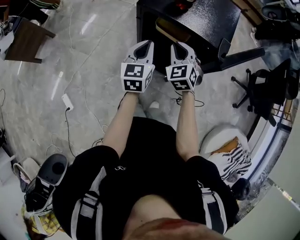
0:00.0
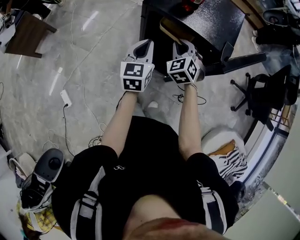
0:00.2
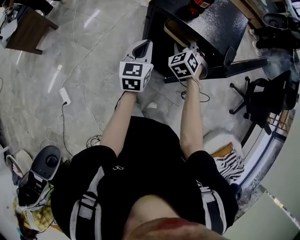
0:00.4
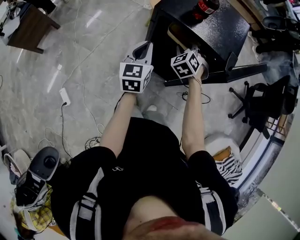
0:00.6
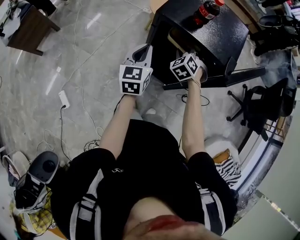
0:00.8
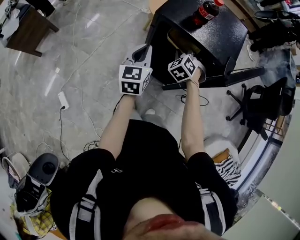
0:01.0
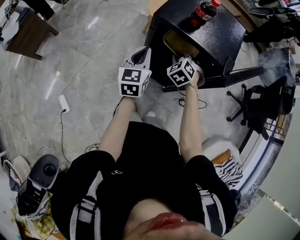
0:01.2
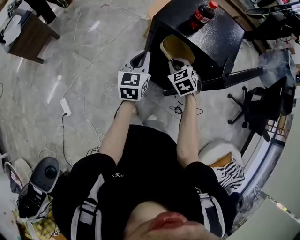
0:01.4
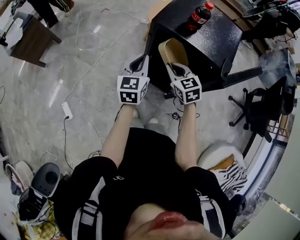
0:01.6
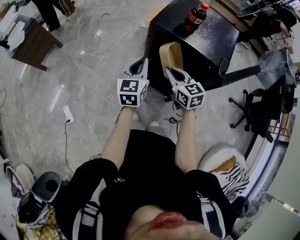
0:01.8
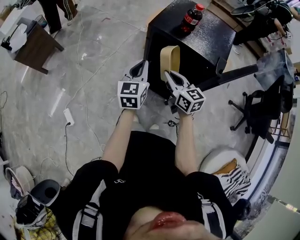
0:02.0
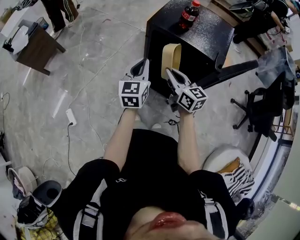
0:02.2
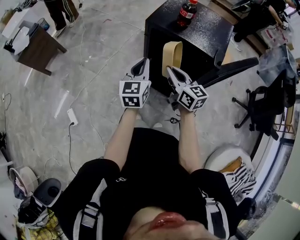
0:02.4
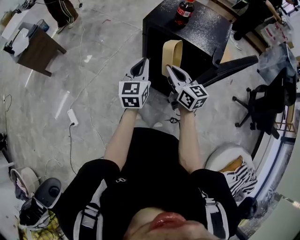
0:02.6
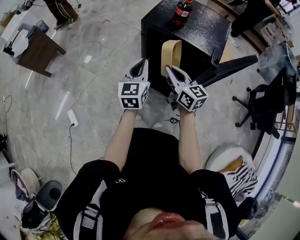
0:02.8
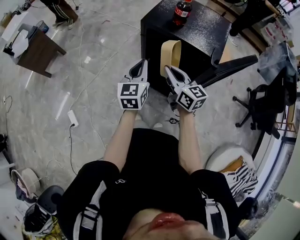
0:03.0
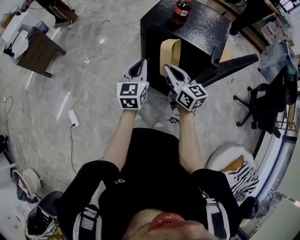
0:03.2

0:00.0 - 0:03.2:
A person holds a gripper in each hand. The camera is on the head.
0:00.0 - 0:01.6: The two grippers go approximately 5 cm to the left. The right gripper turns by roughly 30 degrees, and opens, then closes once more.
0:01.6 - 0:03.2: The left gripper is displaced backward by some 5 cm; the right gripper shifts approximately 10 cm upward and backward, and swivels about 40 degrees.

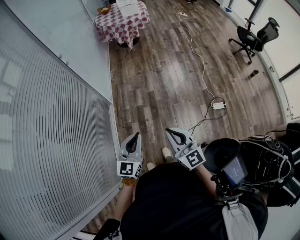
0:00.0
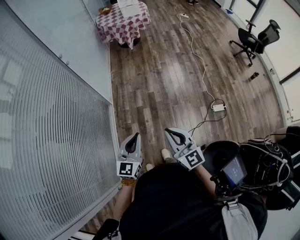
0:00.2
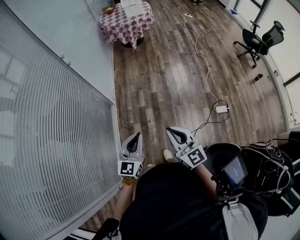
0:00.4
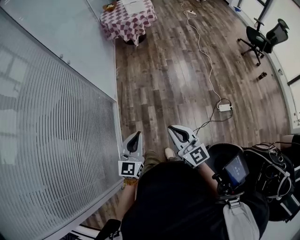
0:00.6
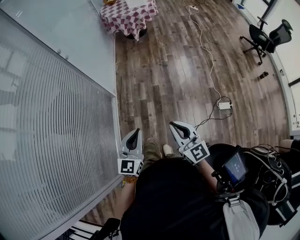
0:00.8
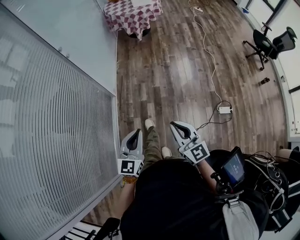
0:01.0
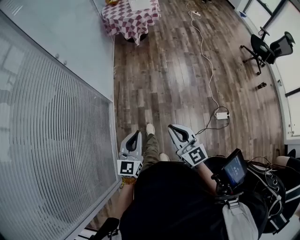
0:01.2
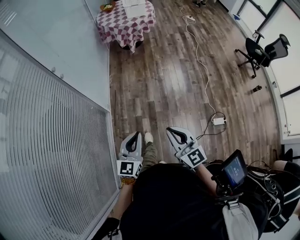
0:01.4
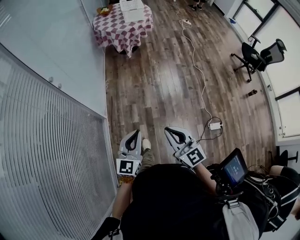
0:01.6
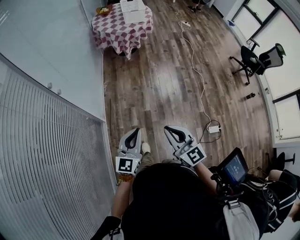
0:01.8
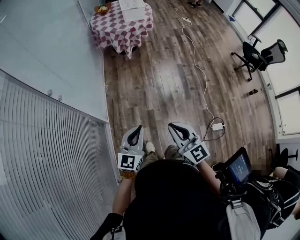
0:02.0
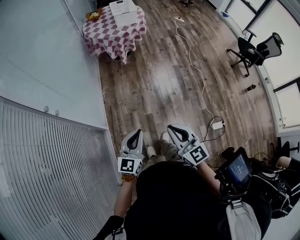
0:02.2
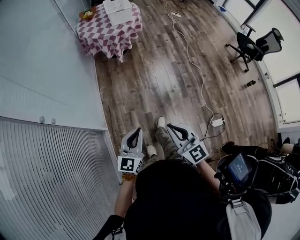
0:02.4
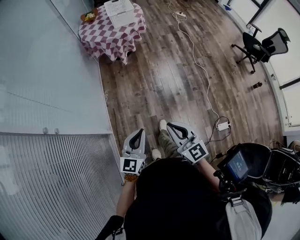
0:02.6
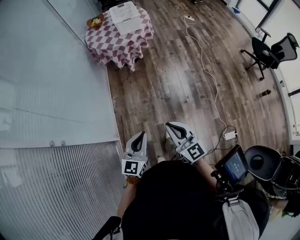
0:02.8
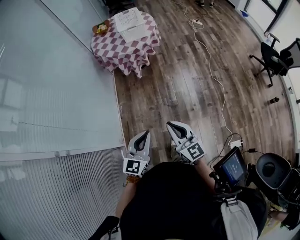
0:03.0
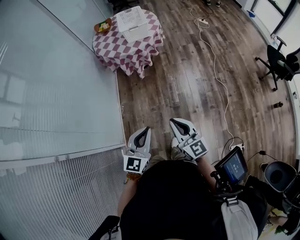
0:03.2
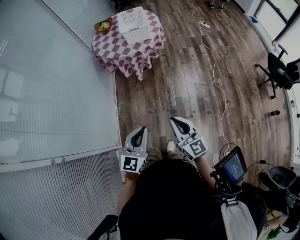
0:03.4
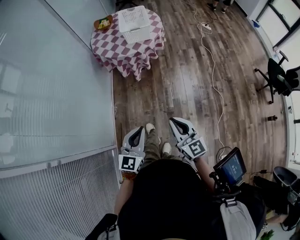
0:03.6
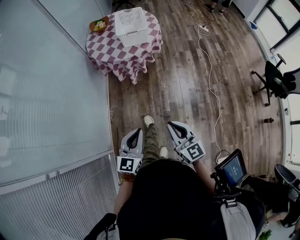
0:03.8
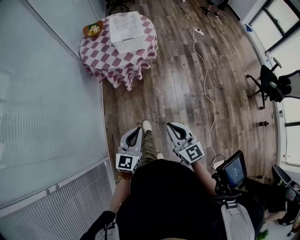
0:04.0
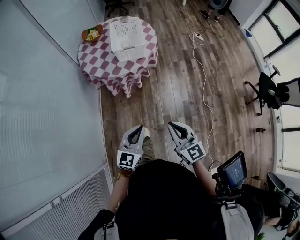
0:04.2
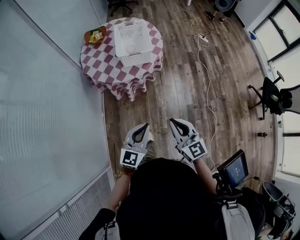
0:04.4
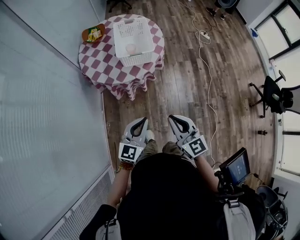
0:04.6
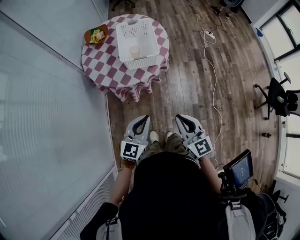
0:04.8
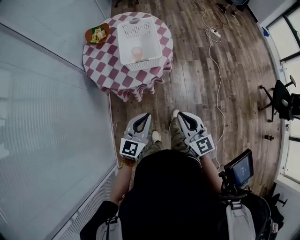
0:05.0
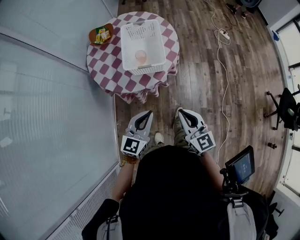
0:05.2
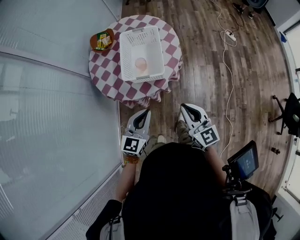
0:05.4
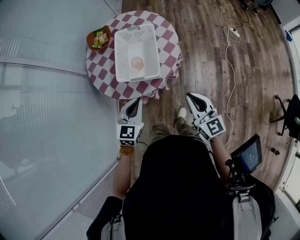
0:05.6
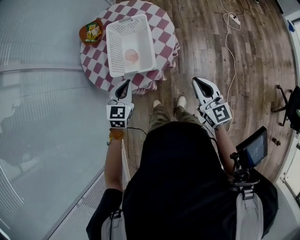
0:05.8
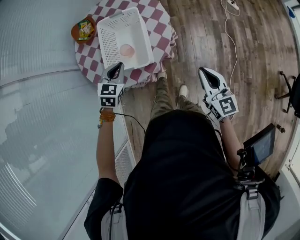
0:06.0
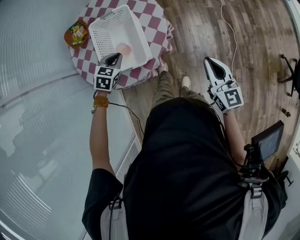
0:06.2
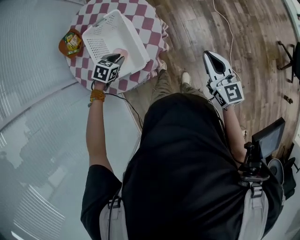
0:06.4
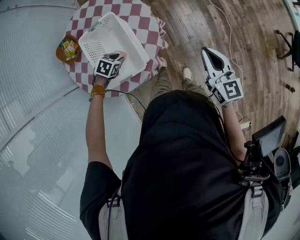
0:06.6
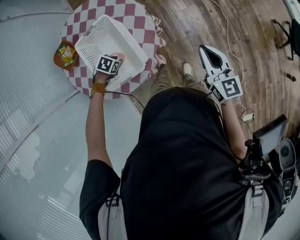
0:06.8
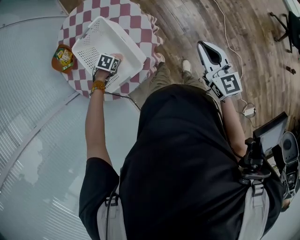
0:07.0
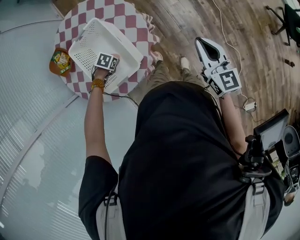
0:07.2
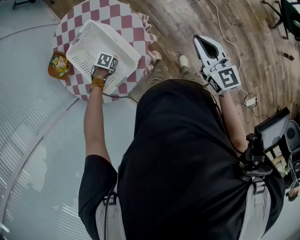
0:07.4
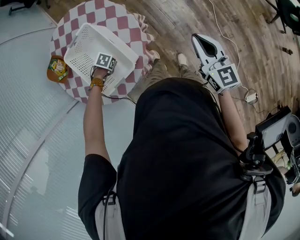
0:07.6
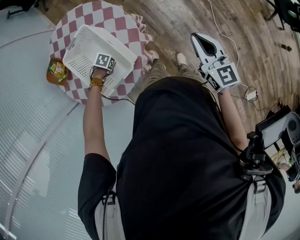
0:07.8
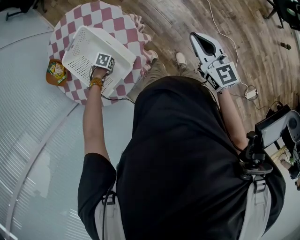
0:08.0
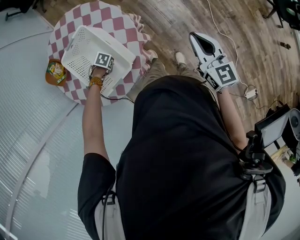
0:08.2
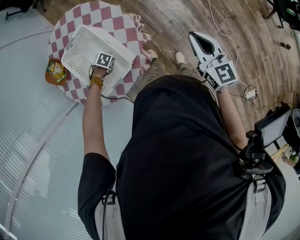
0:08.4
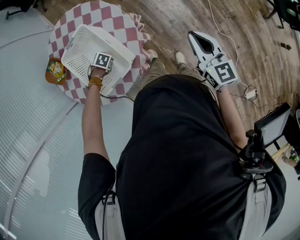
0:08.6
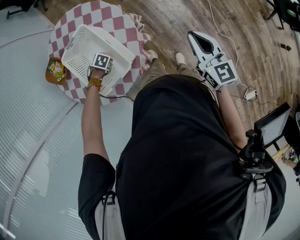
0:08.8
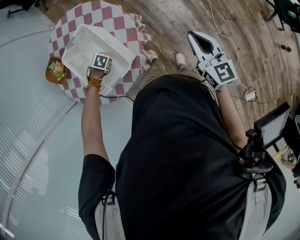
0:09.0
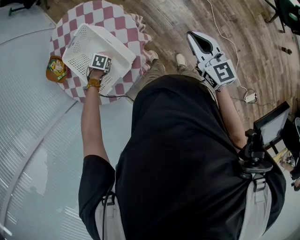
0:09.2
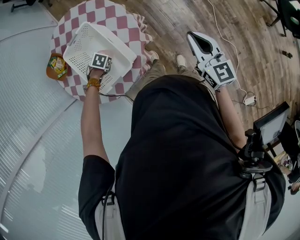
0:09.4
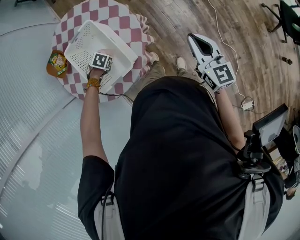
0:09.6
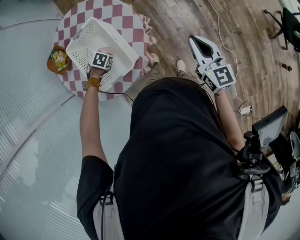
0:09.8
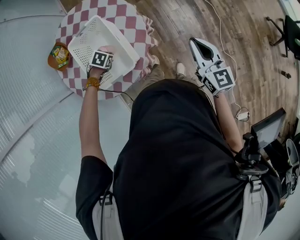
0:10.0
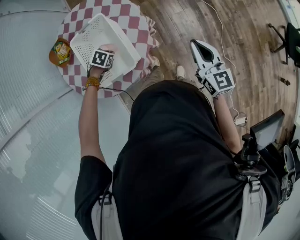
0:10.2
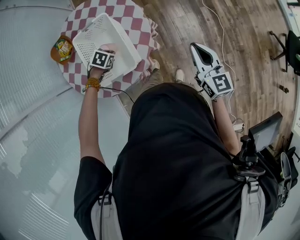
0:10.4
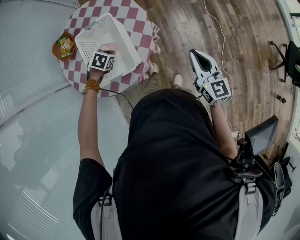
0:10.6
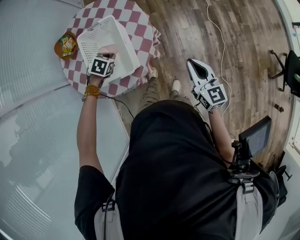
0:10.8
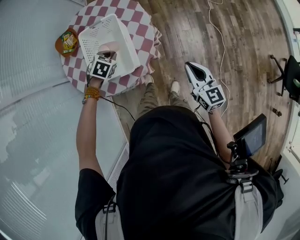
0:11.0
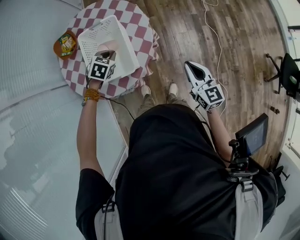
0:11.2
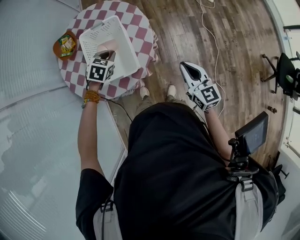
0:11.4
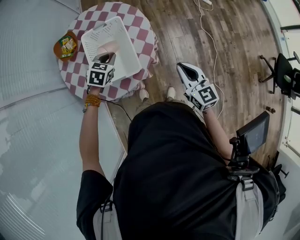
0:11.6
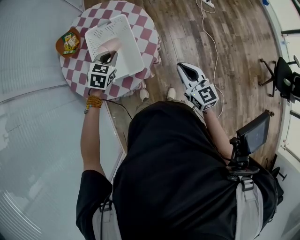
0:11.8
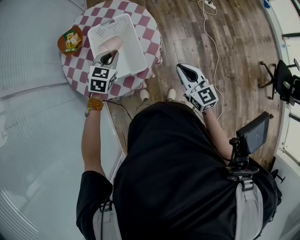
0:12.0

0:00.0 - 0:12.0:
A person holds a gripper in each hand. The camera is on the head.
0:00.0 - 0:01.6: The grippers both shift forward by approximately 30 cm.
0:01.6 - 0:03.0: The two grippers go roughly 35 cm forward.
0:03.0 - 0:04.4: The two grippers travel together, forward, roughly 40 cm.
0:04.4 - 0:06.0: The pair of grippers is taken forward, some 50 cm. The left gripper tips its fingers downward by roughly 40 degrees.
0:06.0 - 0:07.6: The left gripper shifts about 25 cm downward, angles its fingers downward, by about 40 degrees, and opens its fingers. The right gripper moves roughly 5 cm, and swivels roughly 30 degrees.
0:07.6 - 0:09.0: The left gripper closes.
0:09.0 - 0:10.4: The left gripper heads upward, covering about 10 cm.
0:10.4 - 0:12.0: The left gripper goes roughly 15 cm upward, and points its fingers roughly 40 degrees further upward, while the right gripper changes place by about 15 cm.

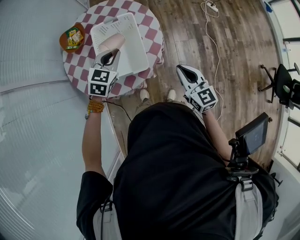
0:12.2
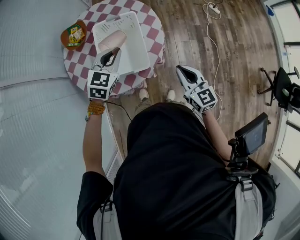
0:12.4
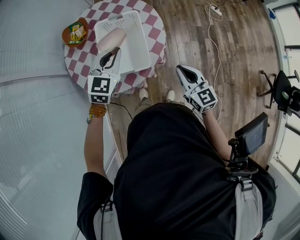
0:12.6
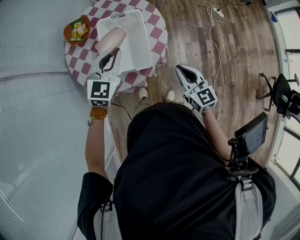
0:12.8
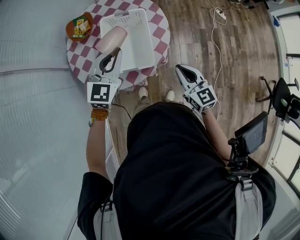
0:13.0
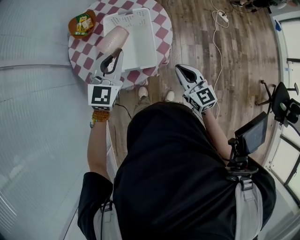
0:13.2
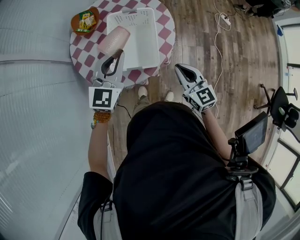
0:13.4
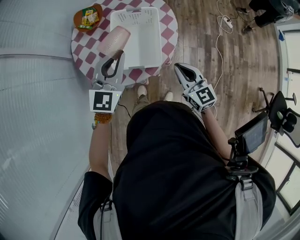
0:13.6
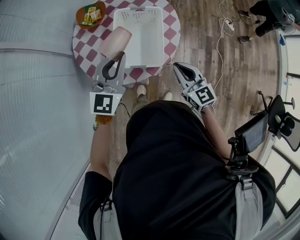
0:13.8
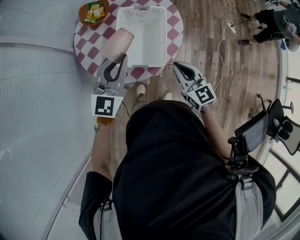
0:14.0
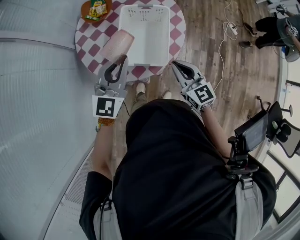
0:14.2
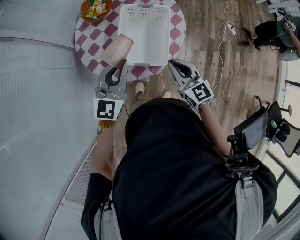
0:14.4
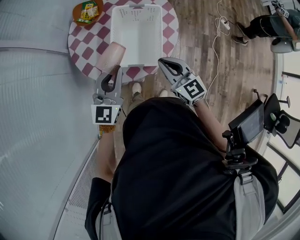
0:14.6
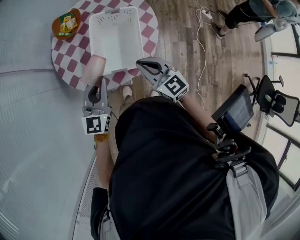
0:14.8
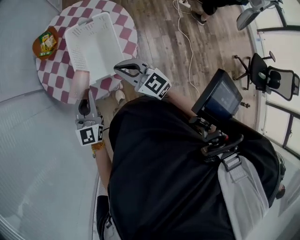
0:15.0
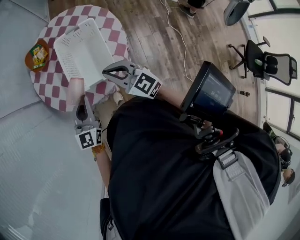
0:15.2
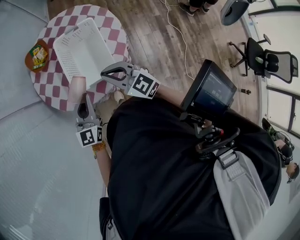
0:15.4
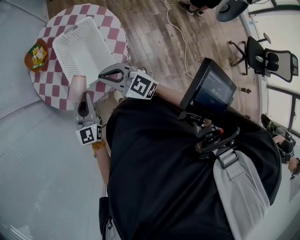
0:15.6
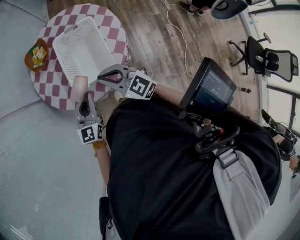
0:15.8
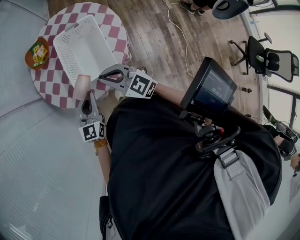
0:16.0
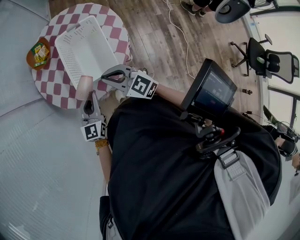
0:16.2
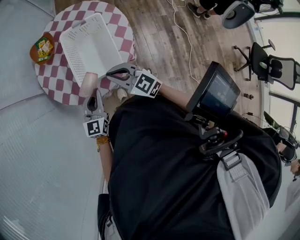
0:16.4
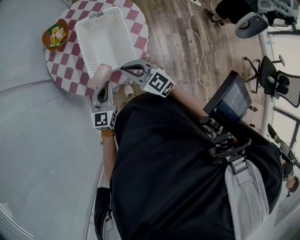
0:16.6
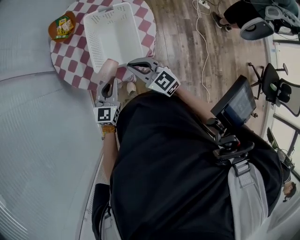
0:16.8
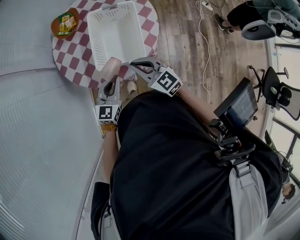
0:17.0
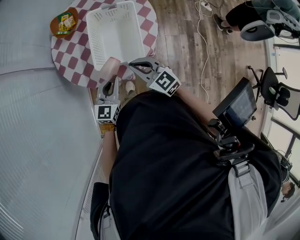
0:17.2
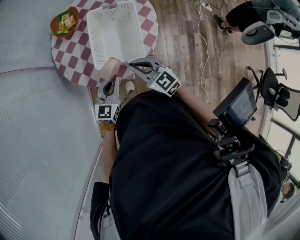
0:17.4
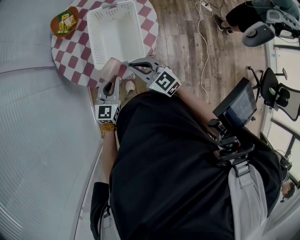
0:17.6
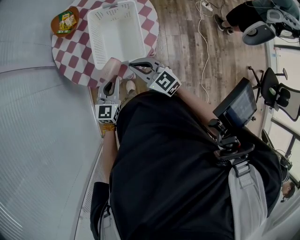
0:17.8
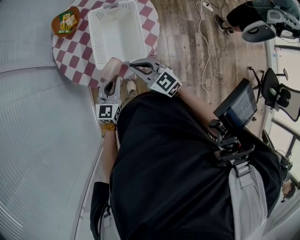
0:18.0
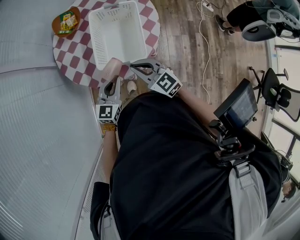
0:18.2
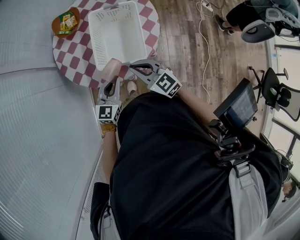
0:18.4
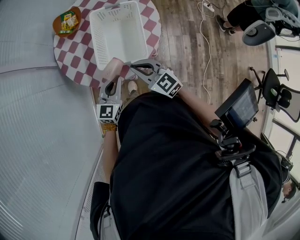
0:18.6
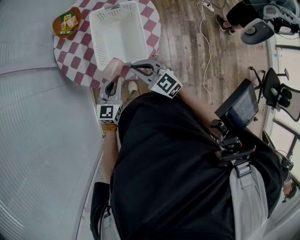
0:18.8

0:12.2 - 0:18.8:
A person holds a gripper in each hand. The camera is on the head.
0:12.2 - 0:13.8: The left gripper shifts roughly 15 cm upward, backward and to the left, and angles its fingers upward, by roughly 30 degrees; the right gripper goes roughly 10 cm to the left.
0:13.8 - 0:15.4: The left gripper heads downward and backward, covering about 10 cm; the right gripper goes approximately 10 cm to the left.
0:15.4 - 0:17.2: Both grippers move downward, approximately 5 cm.
0:17.2 - 0:18.8: Both grippers stay about where they are.

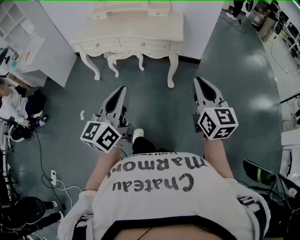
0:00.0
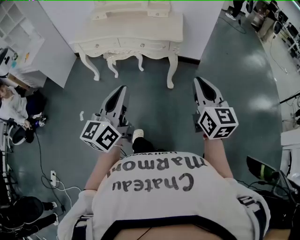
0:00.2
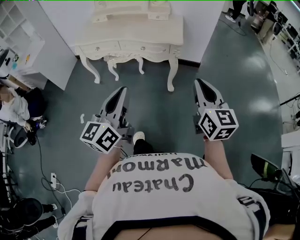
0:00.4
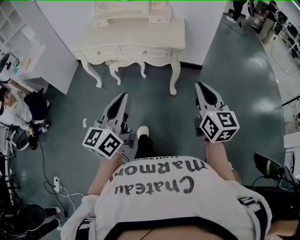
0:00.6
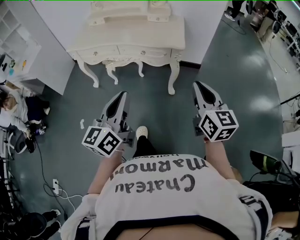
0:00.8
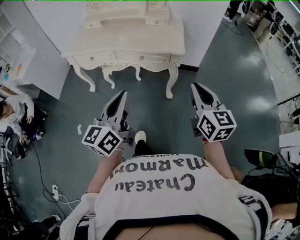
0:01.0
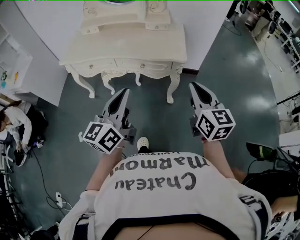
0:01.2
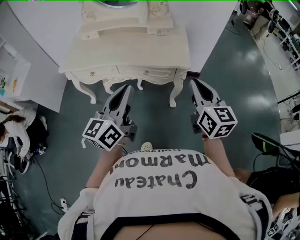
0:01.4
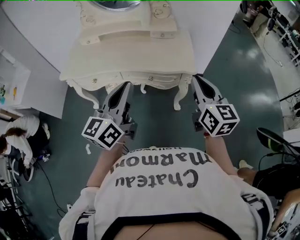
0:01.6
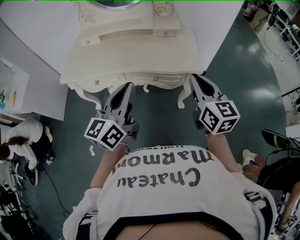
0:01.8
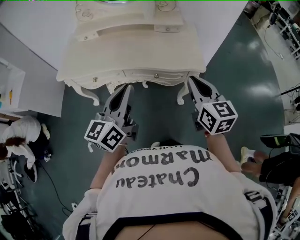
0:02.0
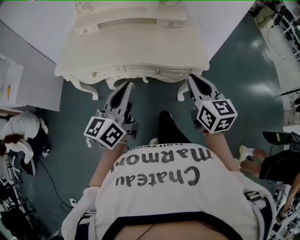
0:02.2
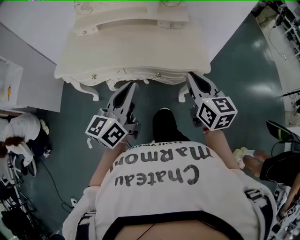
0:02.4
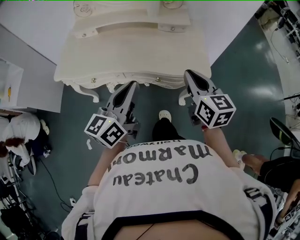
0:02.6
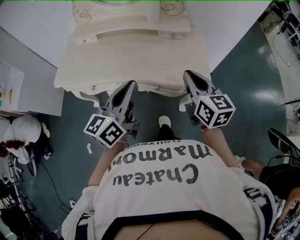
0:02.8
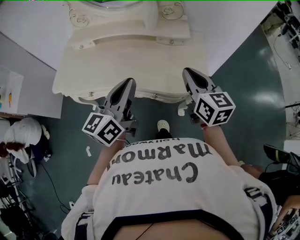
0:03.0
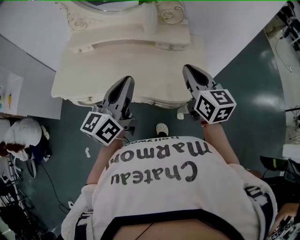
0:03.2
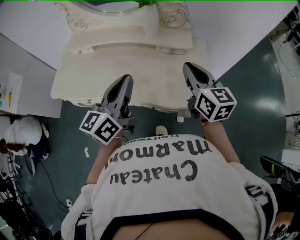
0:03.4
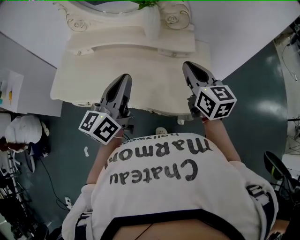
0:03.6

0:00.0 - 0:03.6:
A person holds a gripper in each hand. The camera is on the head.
0:00.0 - 0:01.8: The two grippers go roughly 35 cm forward and to the left.
0:01.8 - 0:03.6: The grippers both shift forward by roughly 30 cm.
